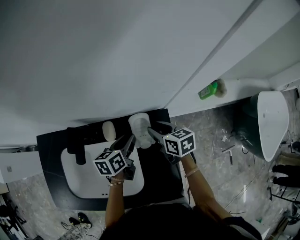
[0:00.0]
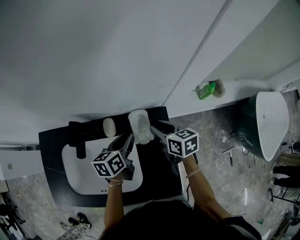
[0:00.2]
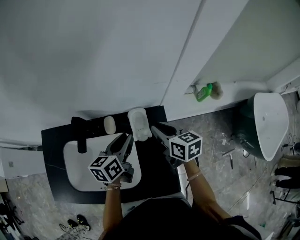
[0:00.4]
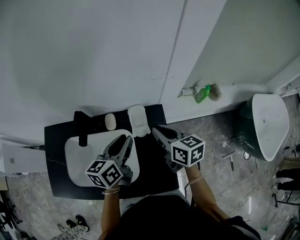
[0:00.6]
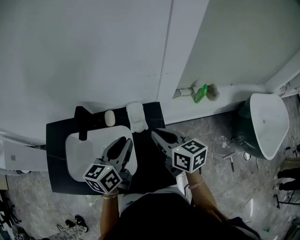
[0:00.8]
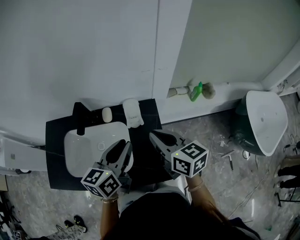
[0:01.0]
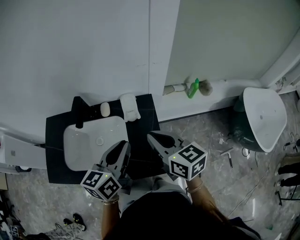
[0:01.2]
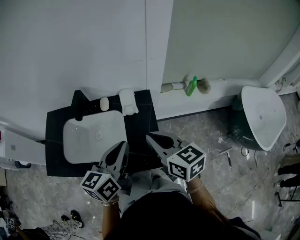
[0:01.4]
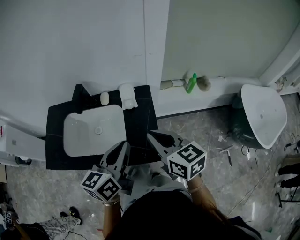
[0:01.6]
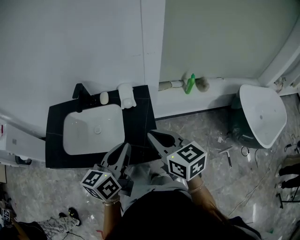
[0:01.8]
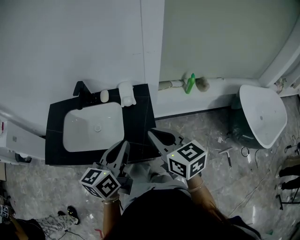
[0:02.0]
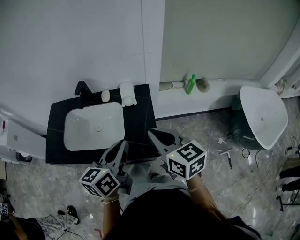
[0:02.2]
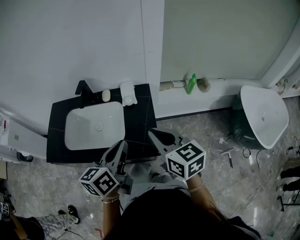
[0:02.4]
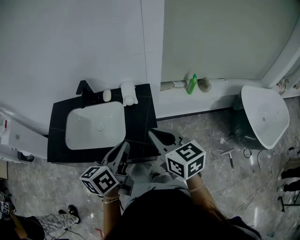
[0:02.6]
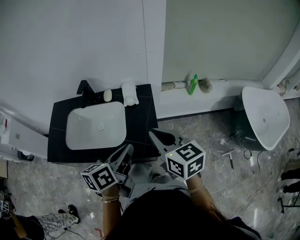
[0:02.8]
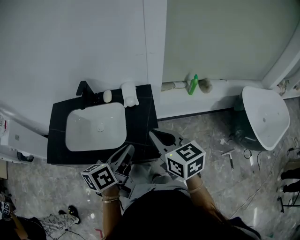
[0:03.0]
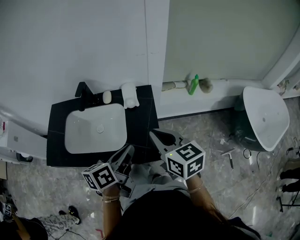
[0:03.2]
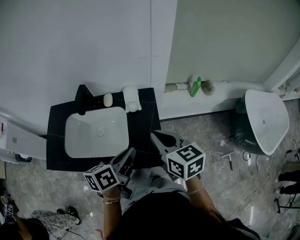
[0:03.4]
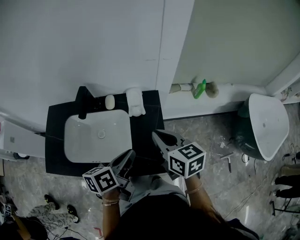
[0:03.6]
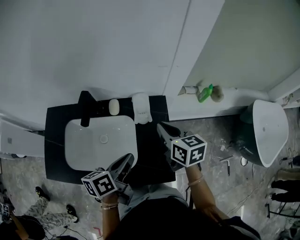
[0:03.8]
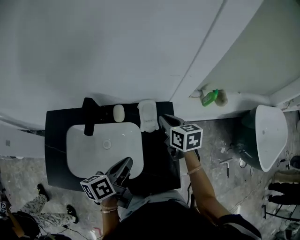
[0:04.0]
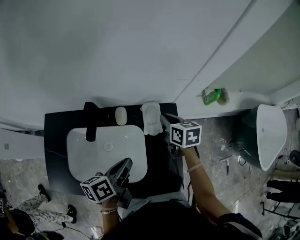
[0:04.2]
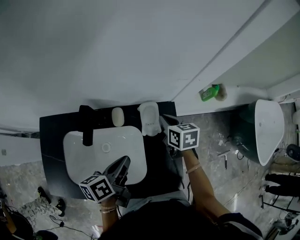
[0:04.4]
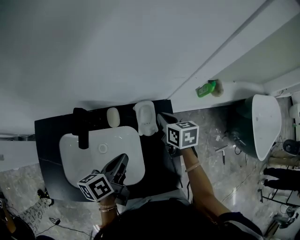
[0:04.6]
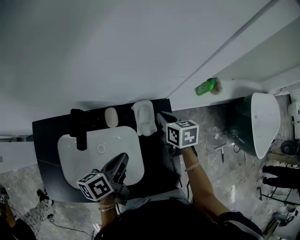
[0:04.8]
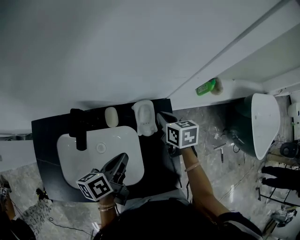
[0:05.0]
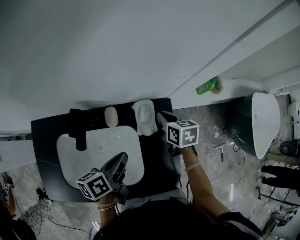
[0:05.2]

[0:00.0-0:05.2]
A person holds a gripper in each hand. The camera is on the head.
0:00.0 to 0:01.8: The grippers both shift backward and upward by some 40 cm. The left gripper rotates roughly 30 degrees, and closes; the right gripper rotates some 20 degrees, and closes its fingers.
0:01.8 to 0:03.4: The left gripper heads downward, covering approximately 5 cm, and changes its angle by about 20 degrees.
0:03.4 to 0:05.2: The left gripper moves forward, to the left and downward, about 25 cm. The right gripper moves forward and downward, approximately 35 cm, and swivels about 30 degrees.

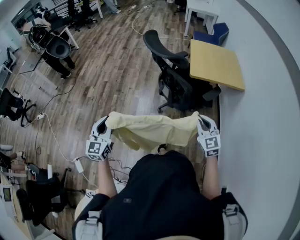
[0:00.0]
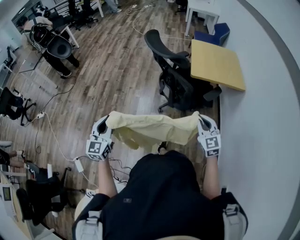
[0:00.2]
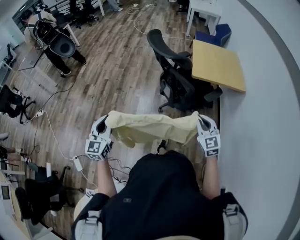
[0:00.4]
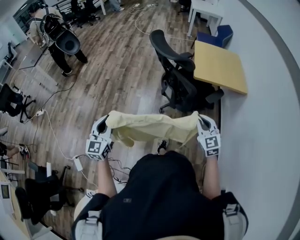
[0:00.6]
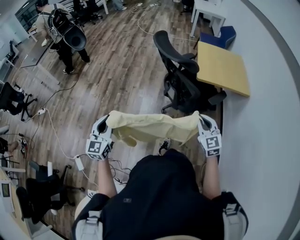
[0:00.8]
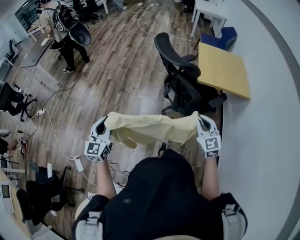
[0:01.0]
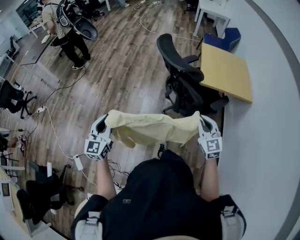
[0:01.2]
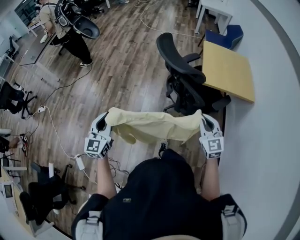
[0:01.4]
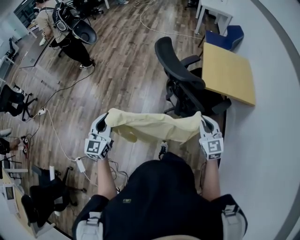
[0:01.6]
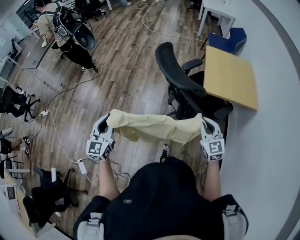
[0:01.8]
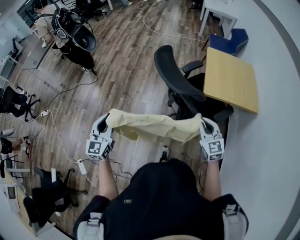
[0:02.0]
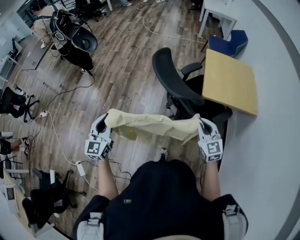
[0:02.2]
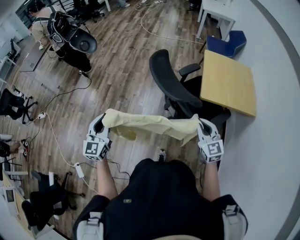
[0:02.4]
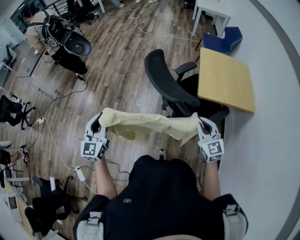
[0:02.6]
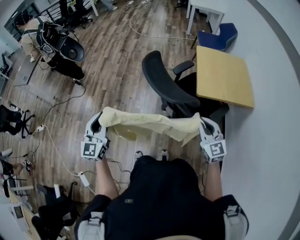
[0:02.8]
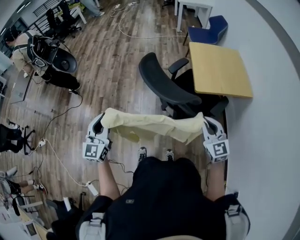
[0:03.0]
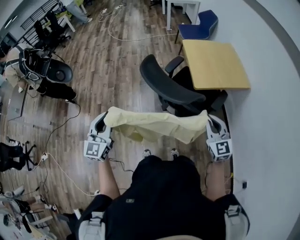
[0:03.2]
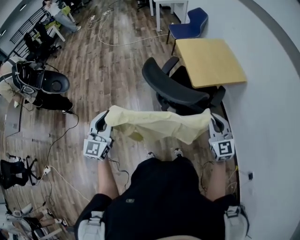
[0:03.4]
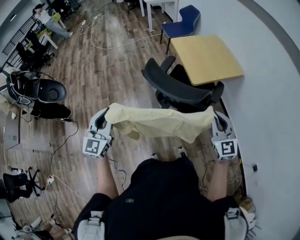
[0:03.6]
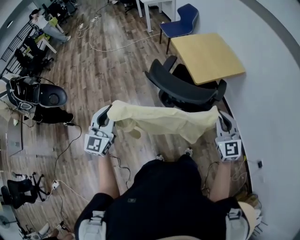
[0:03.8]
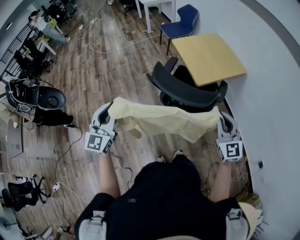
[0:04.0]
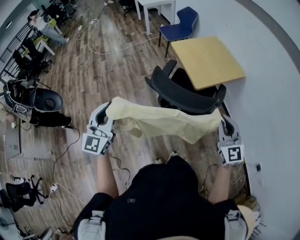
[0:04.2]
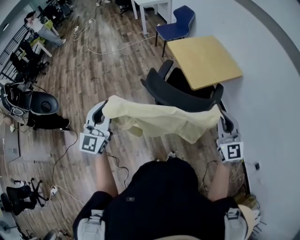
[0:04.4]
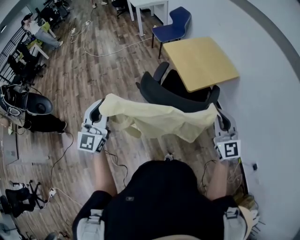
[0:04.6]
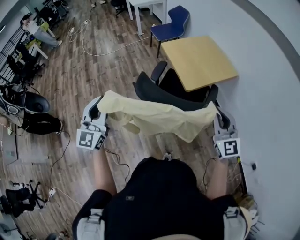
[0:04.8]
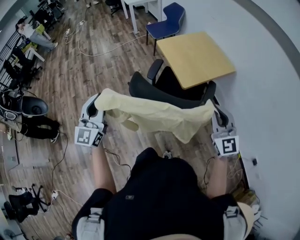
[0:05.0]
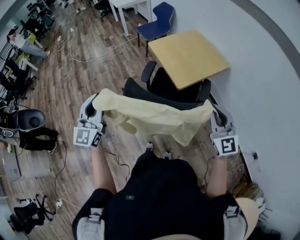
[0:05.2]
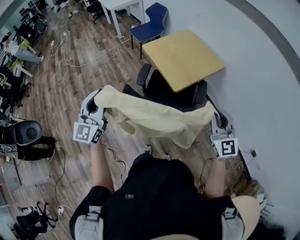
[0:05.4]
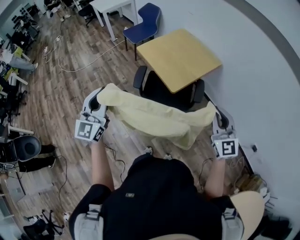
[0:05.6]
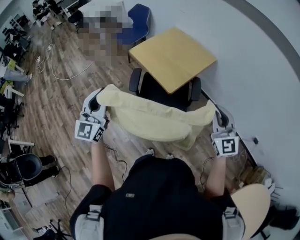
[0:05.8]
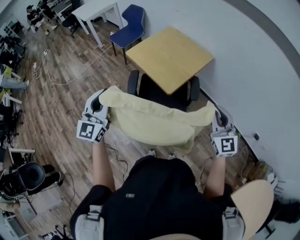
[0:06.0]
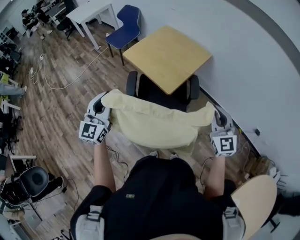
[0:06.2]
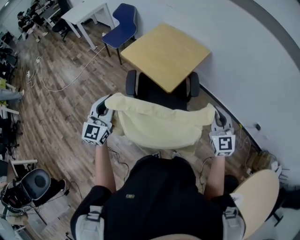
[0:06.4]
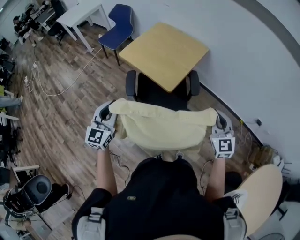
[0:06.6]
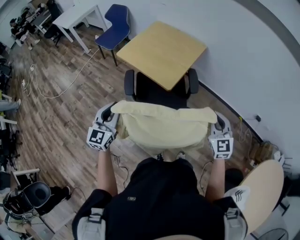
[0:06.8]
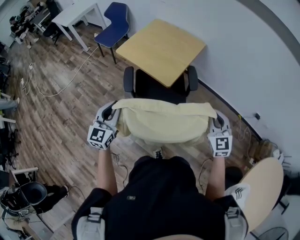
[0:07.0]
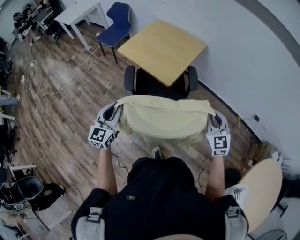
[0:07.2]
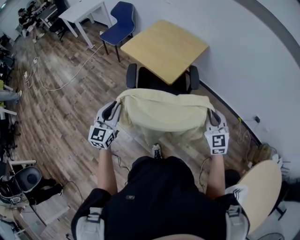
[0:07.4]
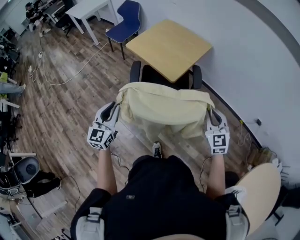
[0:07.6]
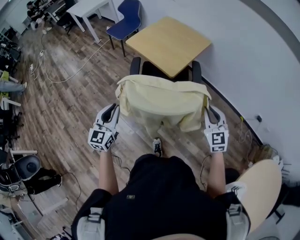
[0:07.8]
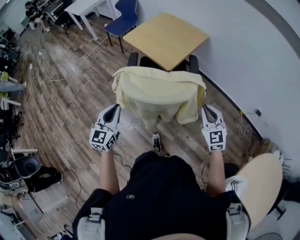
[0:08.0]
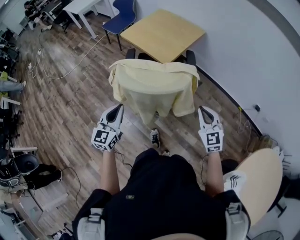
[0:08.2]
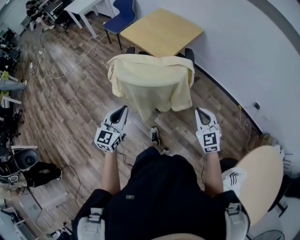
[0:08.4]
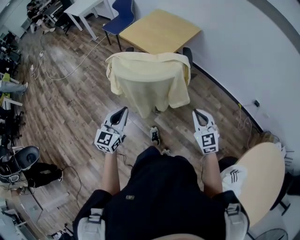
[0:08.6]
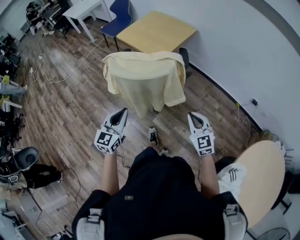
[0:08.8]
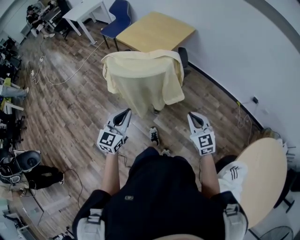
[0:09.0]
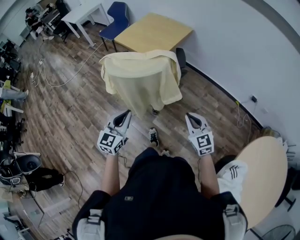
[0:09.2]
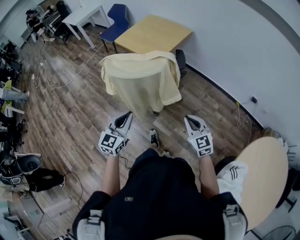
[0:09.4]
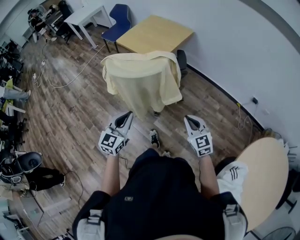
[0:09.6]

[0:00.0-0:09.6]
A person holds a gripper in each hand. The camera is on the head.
0:00.0 to 0:01.6: The grippers both shift forward by some 15 cm.
0:01.6 to 0:03.2: The left gripper travels forward by about 20 cm, and changes its angle by roughly 20 degrees; the right gripper goes some 5 cm forward.
0:03.2 to 0:04.8: The right gripper is displaced upward by roughly 10 cm, while the left gripper goes some 20 cm forward and upward, and rotates about 20 degrees.
0:04.8 to 0:06.4: The right gripper shifts by approximately 10 cm, and turns by roughly 30 degrees; the left gripper ends up roughly 30 cm from where it was, and swivels approximately 30 degrees.
0:06.4 to 0:08.0: Both grippers move backward and downward, roughly 20 cm.
0:08.0 to 0:09.6: The right gripper is displaced backward by about 15 cm; the left gripper goes roughly 20 cm to the right and backward.

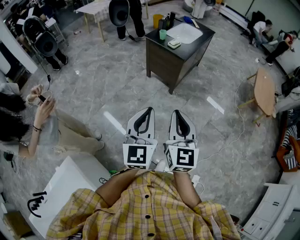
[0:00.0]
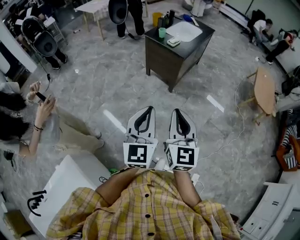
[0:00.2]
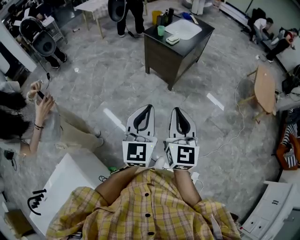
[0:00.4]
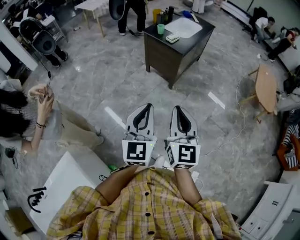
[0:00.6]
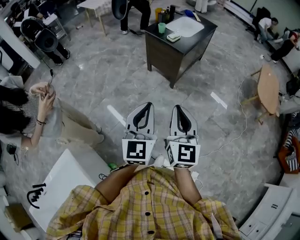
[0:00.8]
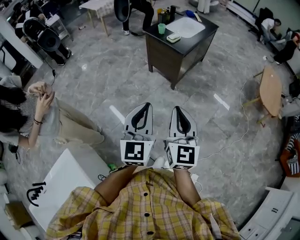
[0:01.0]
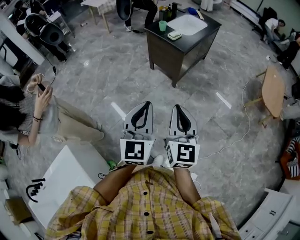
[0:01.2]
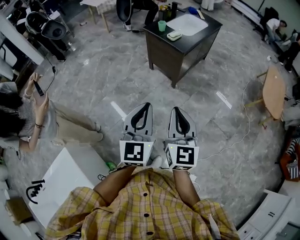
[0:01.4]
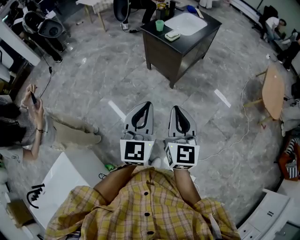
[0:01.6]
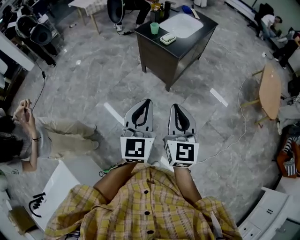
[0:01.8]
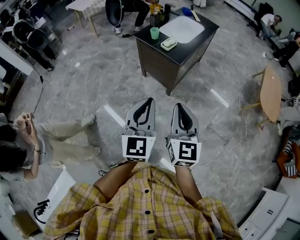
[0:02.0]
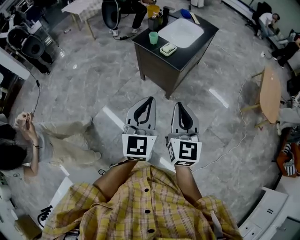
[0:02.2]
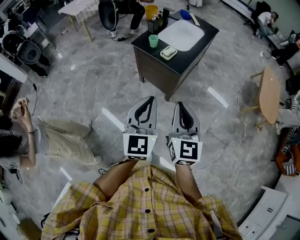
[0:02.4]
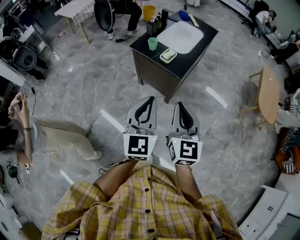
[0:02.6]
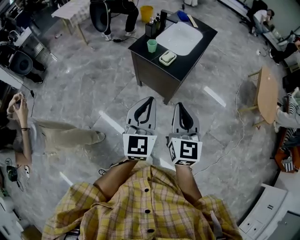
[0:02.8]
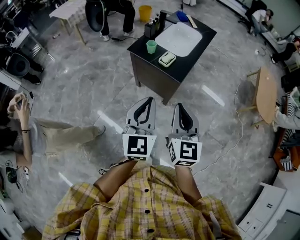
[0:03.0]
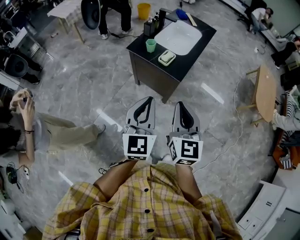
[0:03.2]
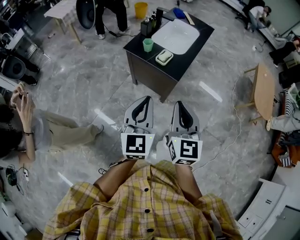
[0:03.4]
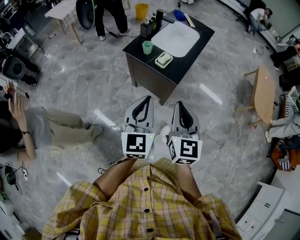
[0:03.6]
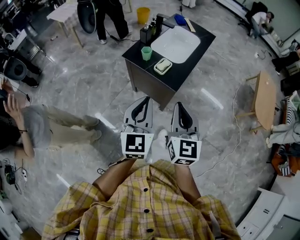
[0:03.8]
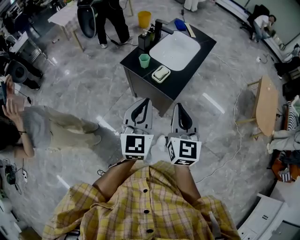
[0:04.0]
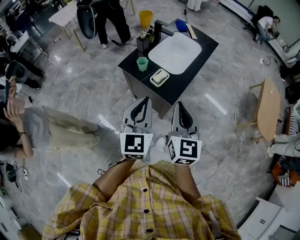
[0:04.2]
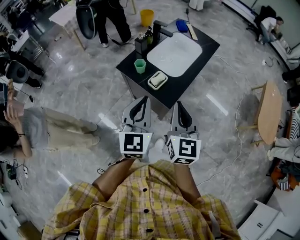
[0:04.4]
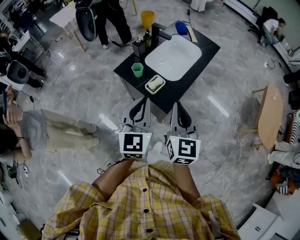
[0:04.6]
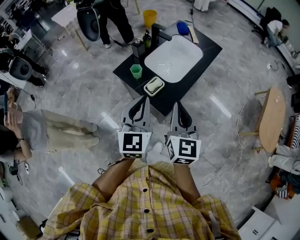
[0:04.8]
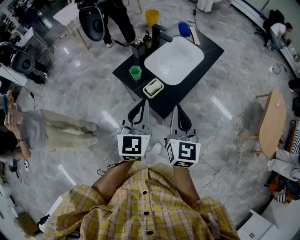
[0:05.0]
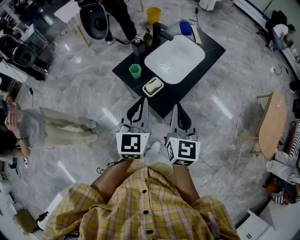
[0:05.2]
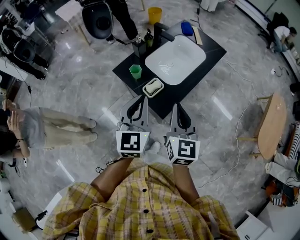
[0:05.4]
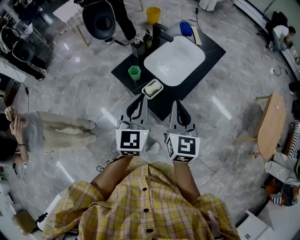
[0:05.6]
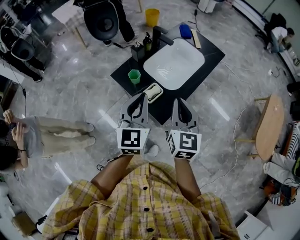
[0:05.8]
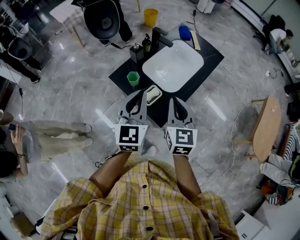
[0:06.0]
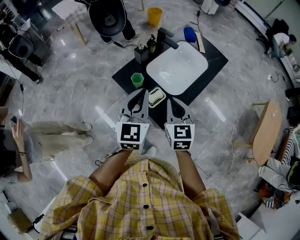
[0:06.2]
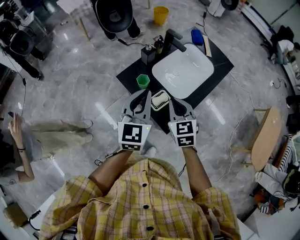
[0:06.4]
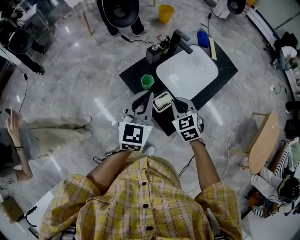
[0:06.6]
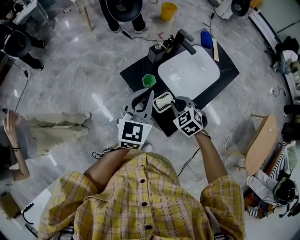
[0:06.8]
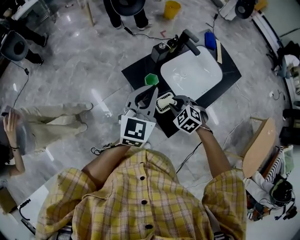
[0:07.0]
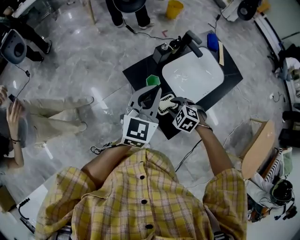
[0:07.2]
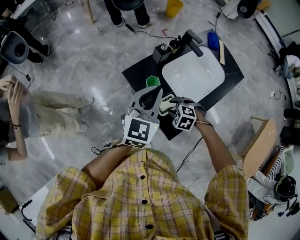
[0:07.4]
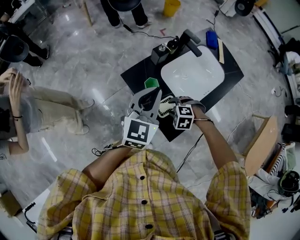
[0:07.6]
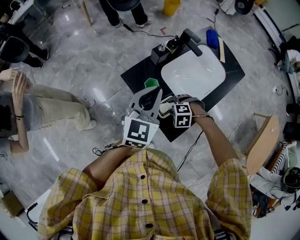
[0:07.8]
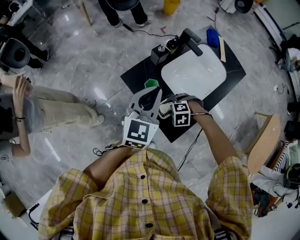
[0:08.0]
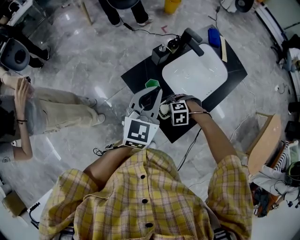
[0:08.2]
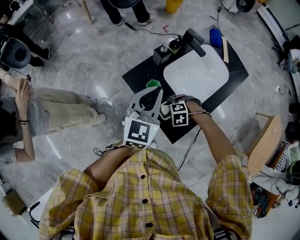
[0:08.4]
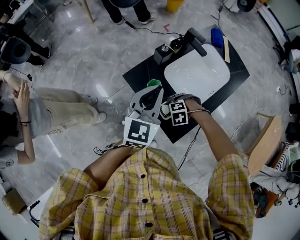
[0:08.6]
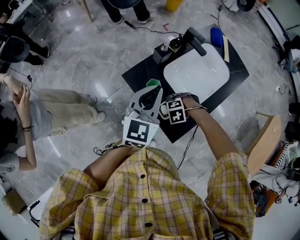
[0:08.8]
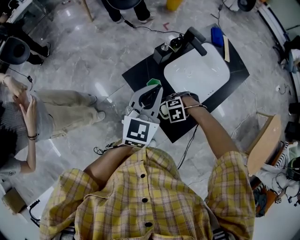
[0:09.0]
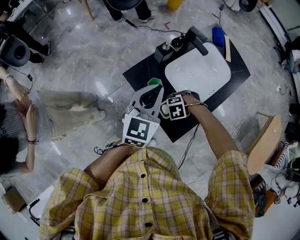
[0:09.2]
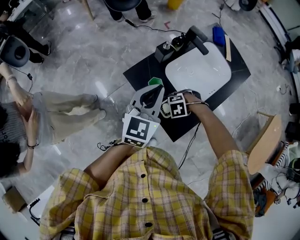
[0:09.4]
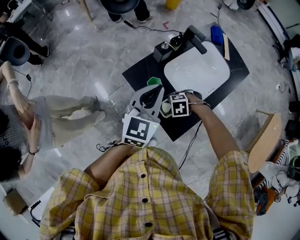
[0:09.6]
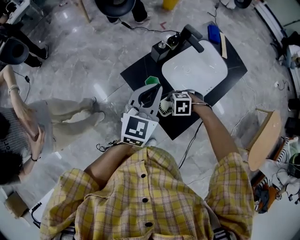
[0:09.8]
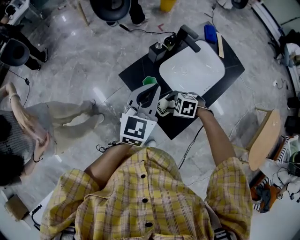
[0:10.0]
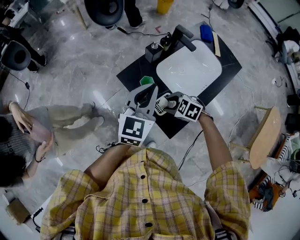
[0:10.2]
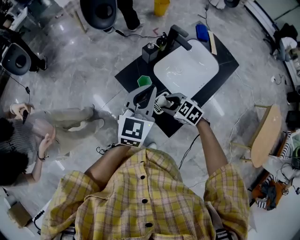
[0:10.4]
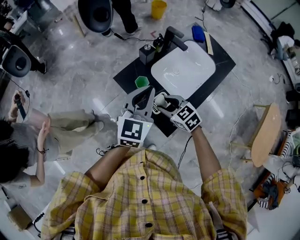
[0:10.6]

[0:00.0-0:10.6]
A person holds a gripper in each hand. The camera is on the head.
0:00.0 to 0:01.6: The grippers both shift forward and to the right by some 15 cm.
0:01.6 to 0:03.0: The grippers both shift forward by roughly 35 cm.
0:03.0 to 0:04.6: The right gripper travels forward and to the right by roughly 25 cm. The left gripper moves forward, roughly 25 cm.
0:04.6 to 0:06.0: Both grippers move forward, approximately 15 cm.
0:06.0 to 0:07.6: The right gripper is displaced downward by approximately 25 cm, tilts its fingers approximately 60 degrees downward, and opens, while the left gripper ends up about 15 cm from where it was.
0:07.6 to 0:09.0: The right gripper rotates about 20 degrees.
0:09.0 to 0:10.6: The left gripper shifts by roughly 10 cm, while the right gripper moves upward, about 15 cm, and angles its fingers upward, by some 40 degrees.
